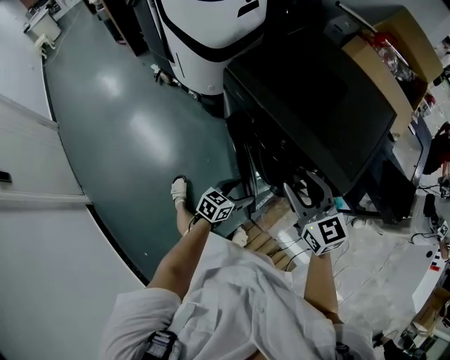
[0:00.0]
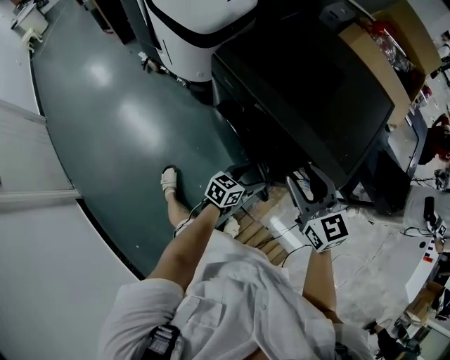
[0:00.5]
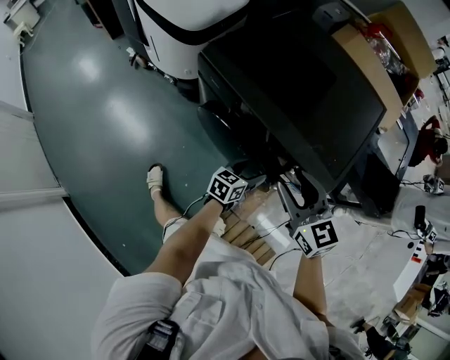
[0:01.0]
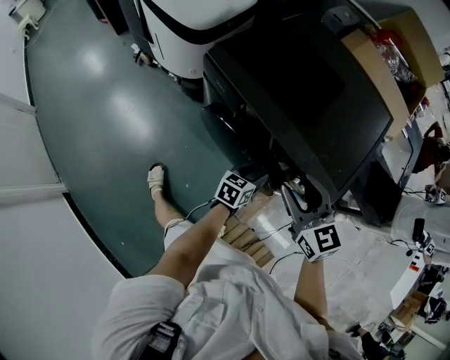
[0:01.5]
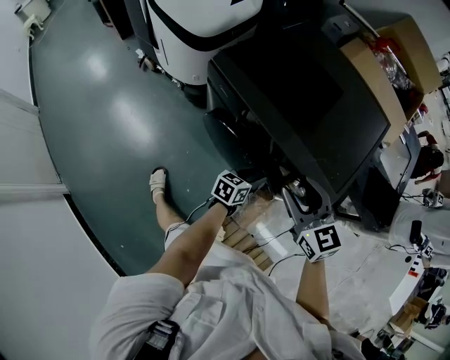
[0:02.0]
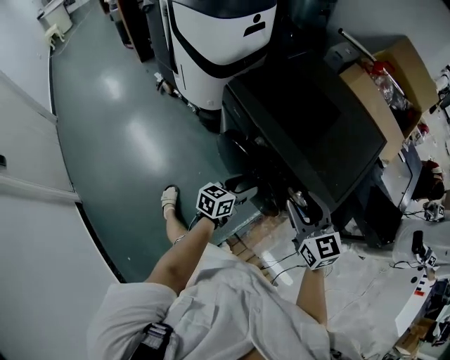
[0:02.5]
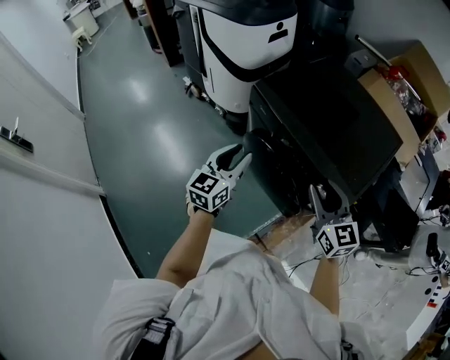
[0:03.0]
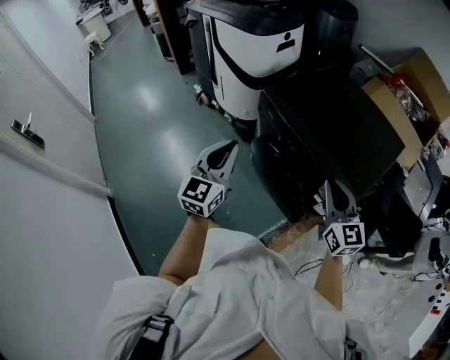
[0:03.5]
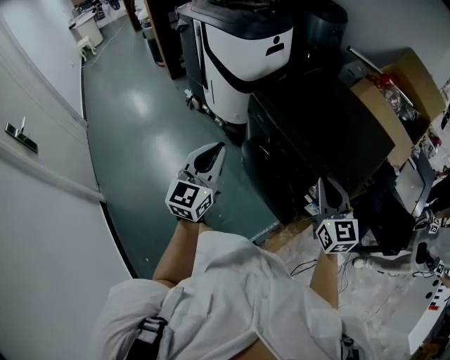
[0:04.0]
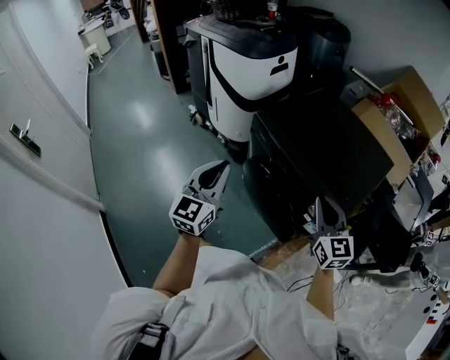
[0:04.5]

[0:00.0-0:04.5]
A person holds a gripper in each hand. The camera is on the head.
0:00.0 to 0:02.0: The right gripper moves roughly 5 cm. The left gripper heads forward and to the right, covering approximately 15 cm, and closes.
0:02.0 to 0:04.5: The right gripper shifts about 10 cm upward, and closes up. The left gripper is displaced upward and to the left by roughly 40 cm, turns by about 60 degrees, and closes its fingers.

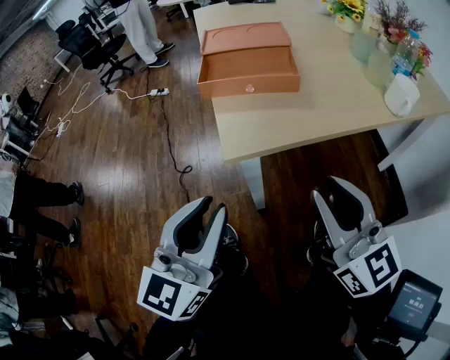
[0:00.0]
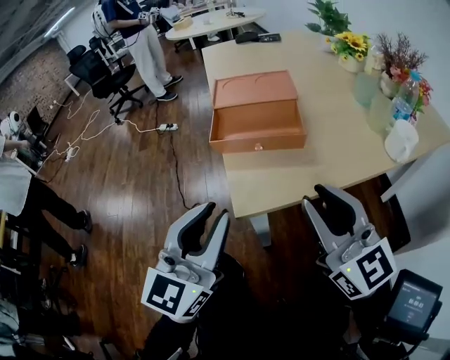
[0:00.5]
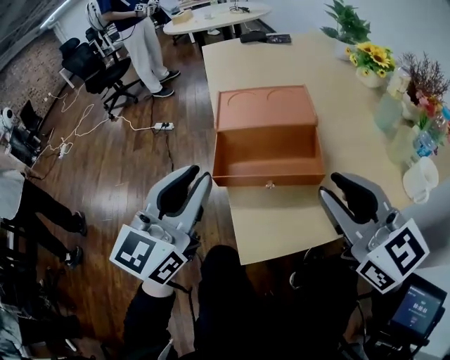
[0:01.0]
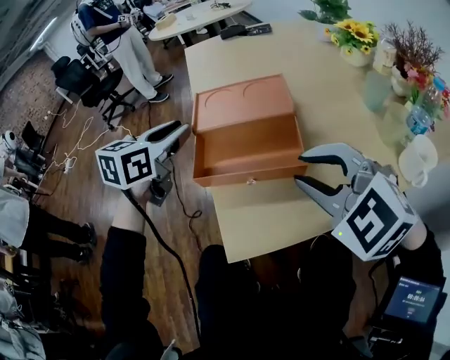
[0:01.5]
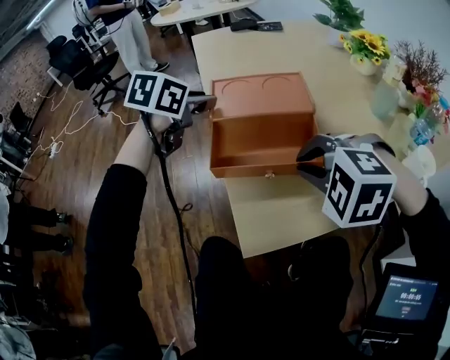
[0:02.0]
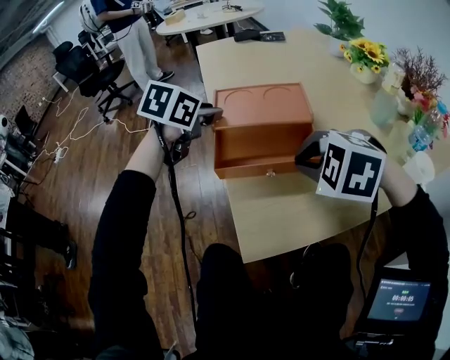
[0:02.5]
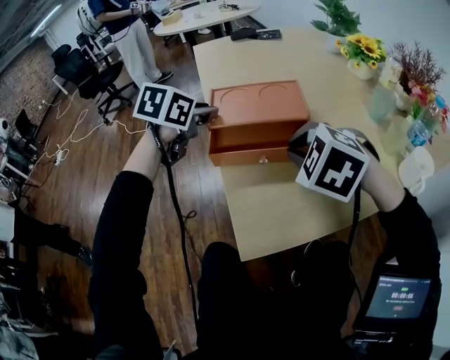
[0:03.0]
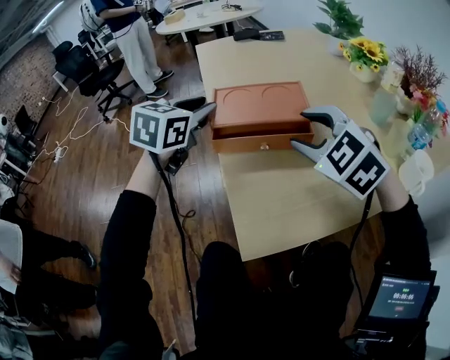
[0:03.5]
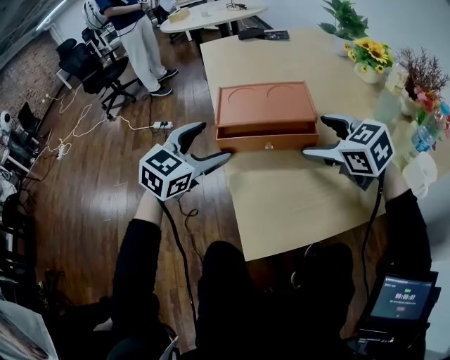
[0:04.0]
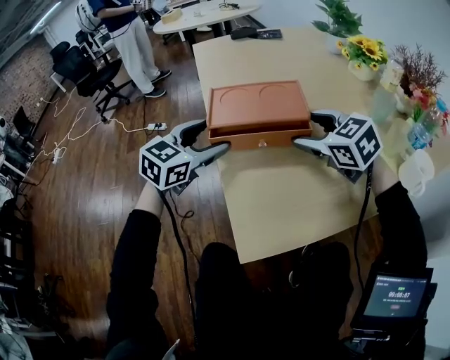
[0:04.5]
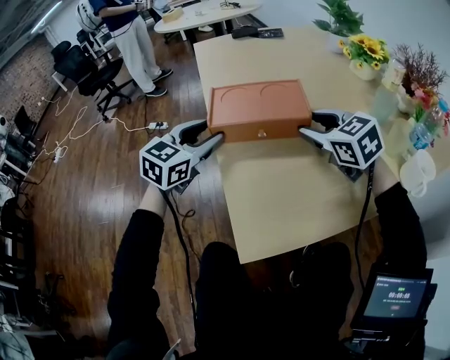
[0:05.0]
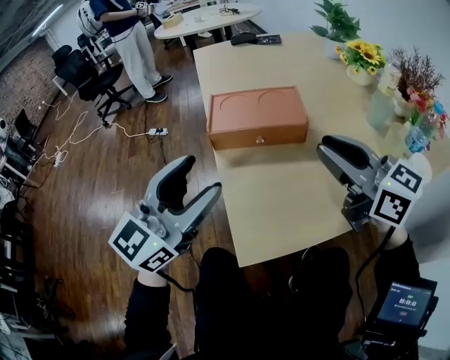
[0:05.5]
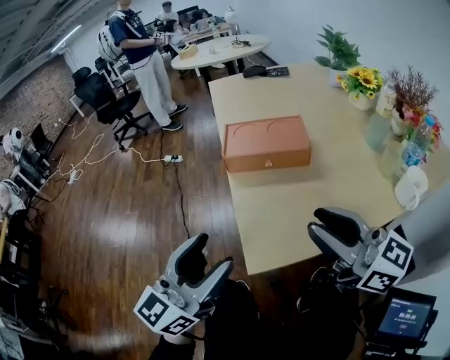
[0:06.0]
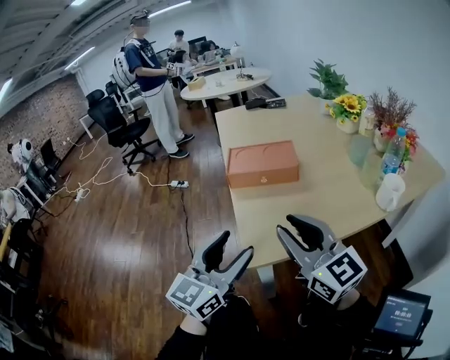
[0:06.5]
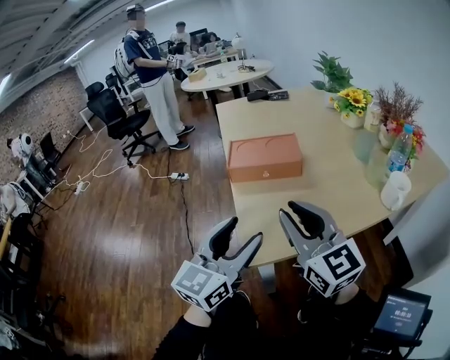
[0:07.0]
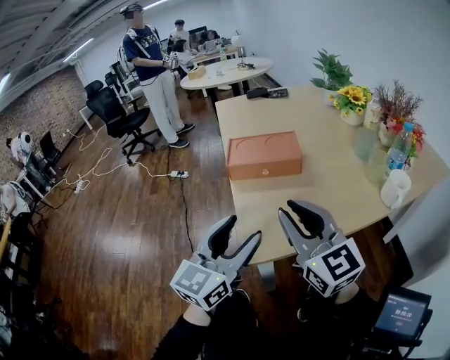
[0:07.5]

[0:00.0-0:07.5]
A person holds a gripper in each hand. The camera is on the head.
0:00.0 to 0:02.0: The left gripper heads forward, covering roughly 40 cm, and angles its fingers downward, by approximately 40 degrees; the right gripper is displaced forward by some 20 cm, and angles its fingers downward, by some 60 degrees.
0:02.0 to 0:04.0: The left gripper goes roughly 5 cm backward, turns by about 30 degrees, and opens up. The right gripper is displaced forward by approximately 10 cm, rotates around the line of its fingers by some 40 degrees, clockwise from behind, and opens.
0:04.0 to 0:05.5: The left gripper goes about 15 cm backward and upward, and changes its angle by roughly 30 degrees. The right gripper shifts about 15 cm upward and backward, tips its fingers upward by about 30 degrees, and closes its fingers.
0:05.5 to 0:07.5: The left gripper is displaced backward and to the right by roughly 10 cm, while the right gripper moves backward and to the left, approximately 15 cm, and swivels roughly 20 degrees.

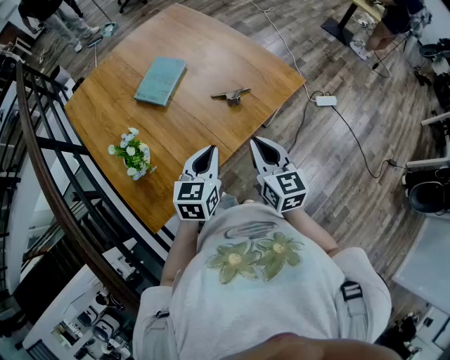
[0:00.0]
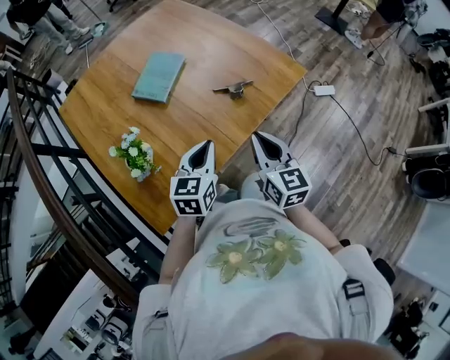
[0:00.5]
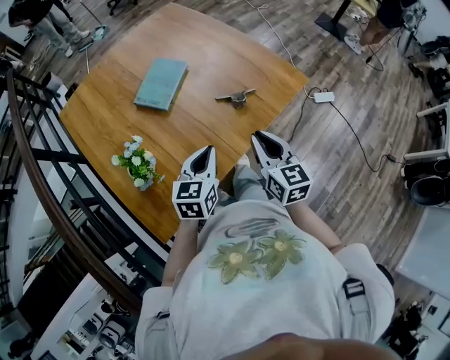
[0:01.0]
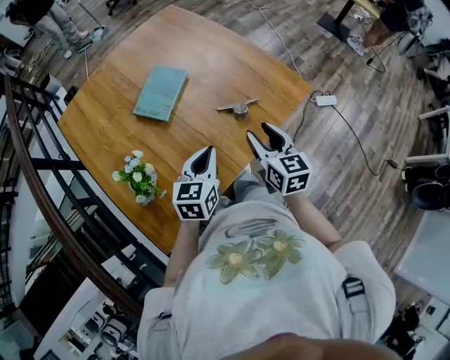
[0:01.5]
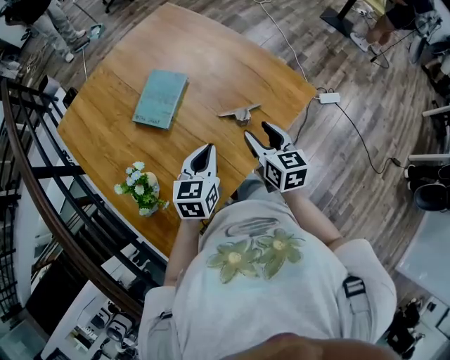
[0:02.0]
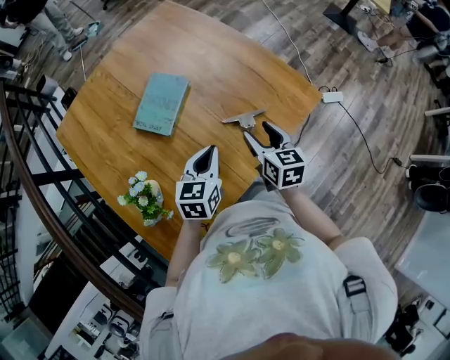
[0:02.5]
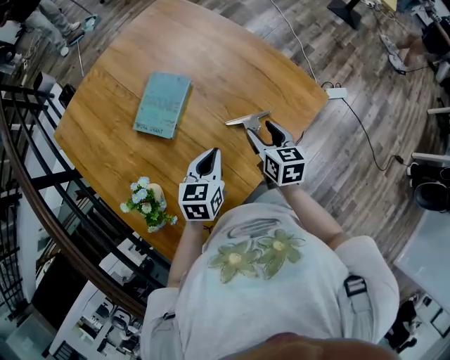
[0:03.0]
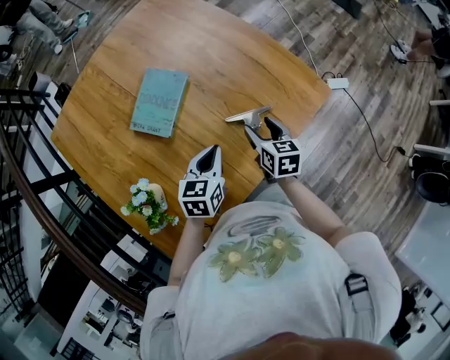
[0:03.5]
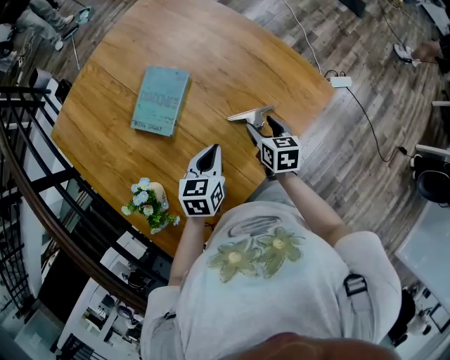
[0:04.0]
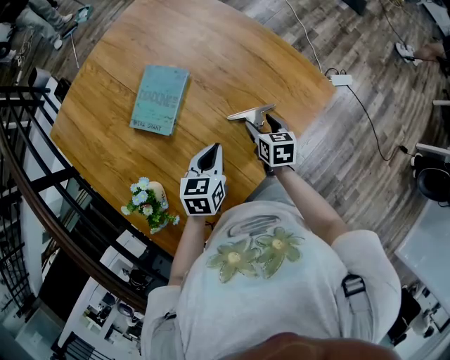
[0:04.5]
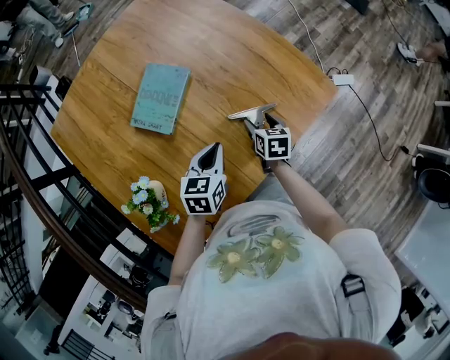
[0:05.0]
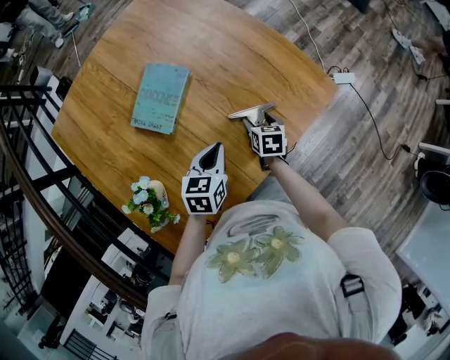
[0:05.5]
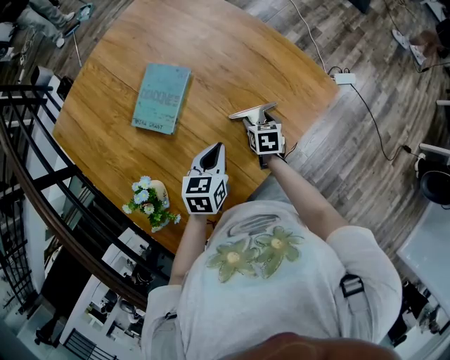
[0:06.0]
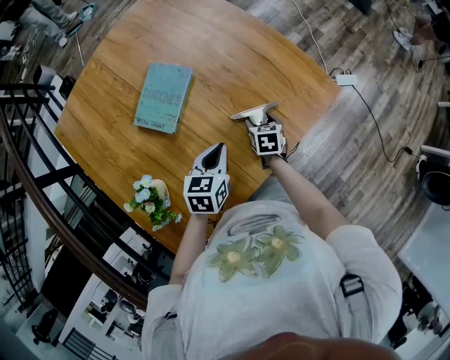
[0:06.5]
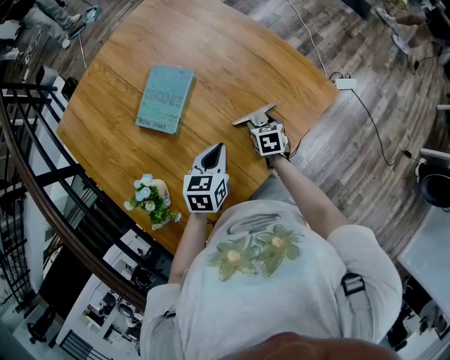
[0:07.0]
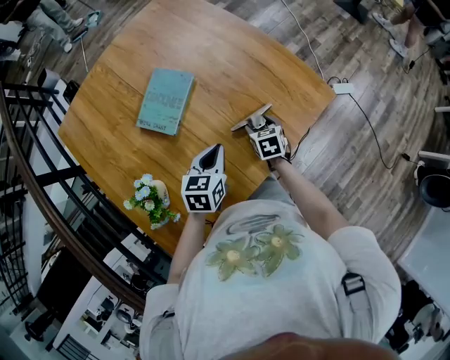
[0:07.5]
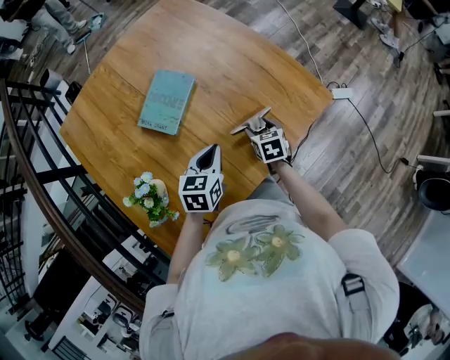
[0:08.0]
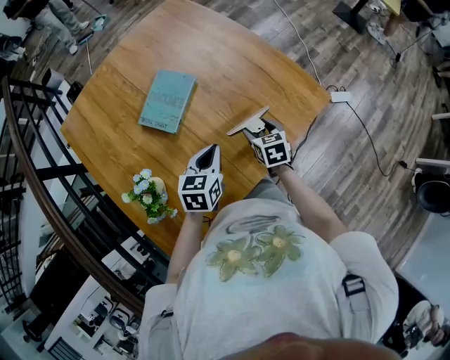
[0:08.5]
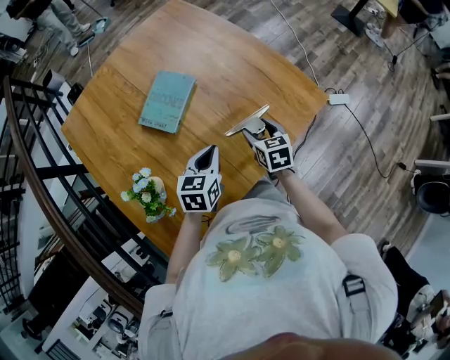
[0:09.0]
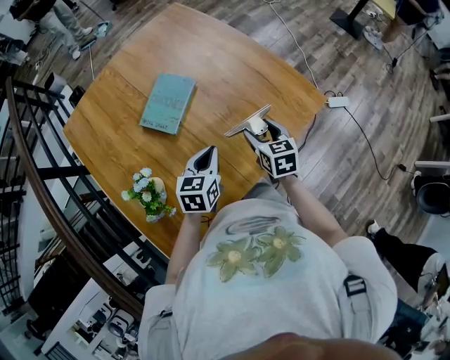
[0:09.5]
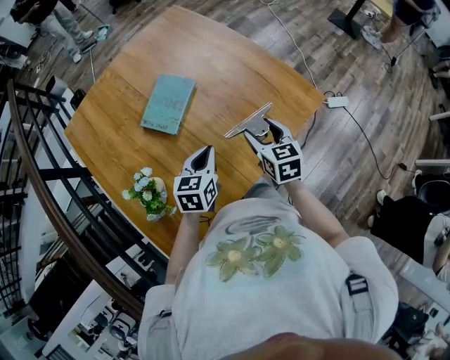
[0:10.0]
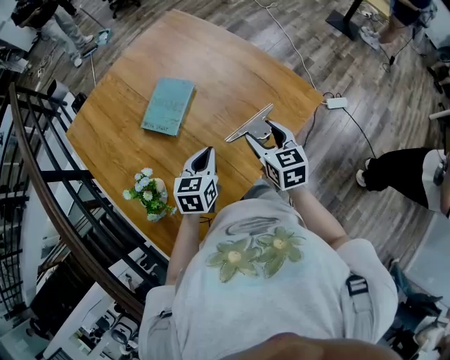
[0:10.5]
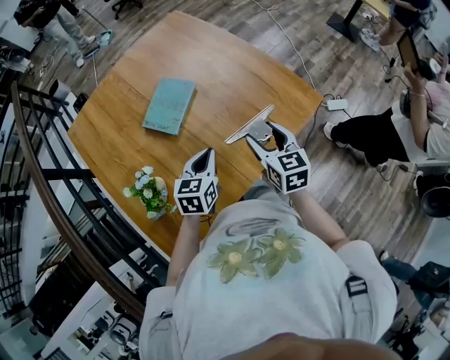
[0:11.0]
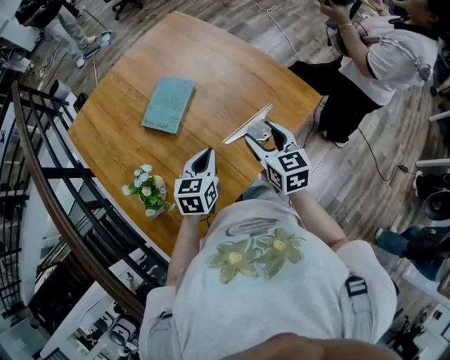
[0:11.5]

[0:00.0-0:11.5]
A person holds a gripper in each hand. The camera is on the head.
0:00.0 to 0:02.0: The right gripper shifts about 15 cm forward and downward, and opens. The left gripper moves forward, approximately 15 cm.
0:02.0 to 0:04.0: The right gripper heads downward and forward, covering approximately 15 cm. Meanwhile the left gripper travels downward and forward by roughly 10 cm.
0:04.0 to 0:06.0: The right gripper travels downward by about 10 cm.
0:06.0 to 0:07.5: There are only small adjustments of the grippers.
0:07.5 to 0:09.5: The right gripper shifts roughly 15 cm upward.
0:09.5 to 0:11.5: The right gripper is displaced upward by approximately 10 cm.

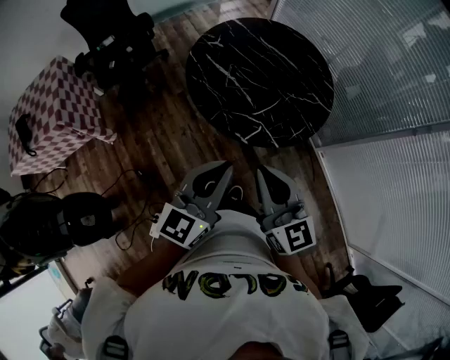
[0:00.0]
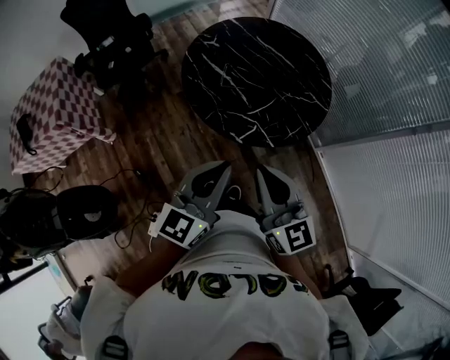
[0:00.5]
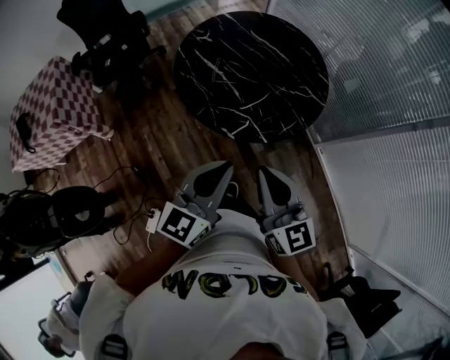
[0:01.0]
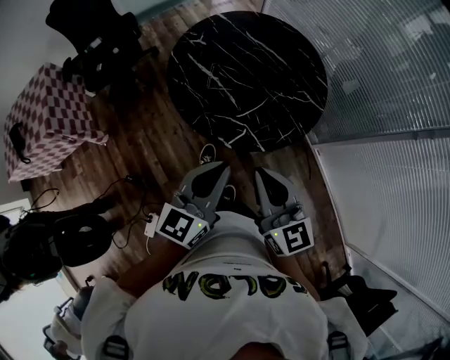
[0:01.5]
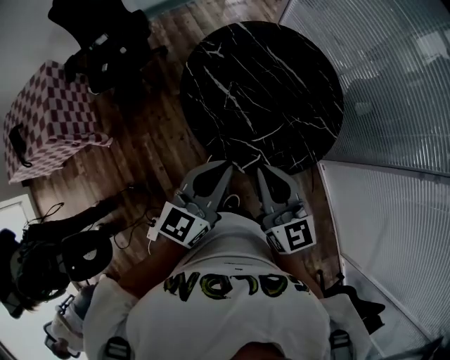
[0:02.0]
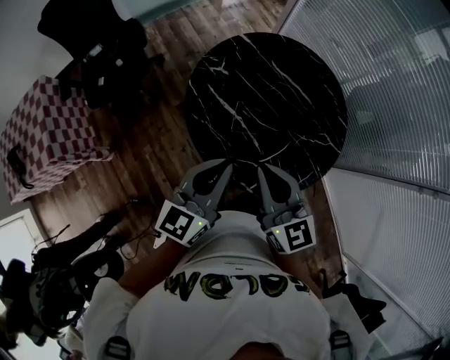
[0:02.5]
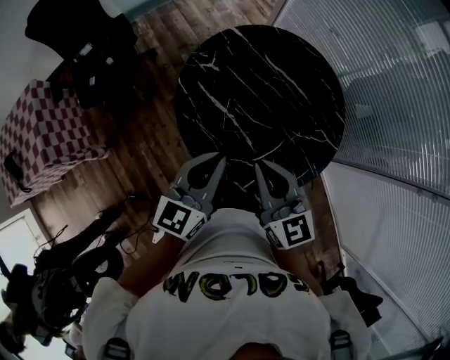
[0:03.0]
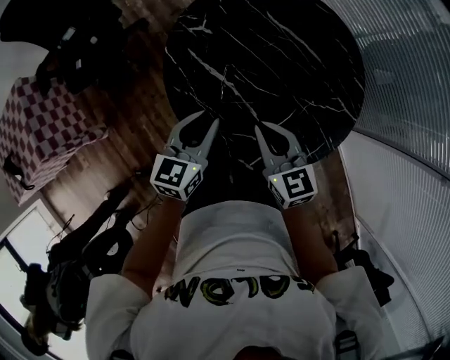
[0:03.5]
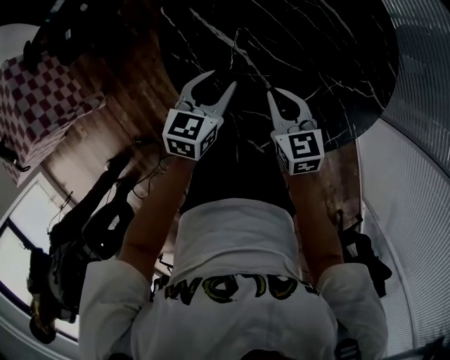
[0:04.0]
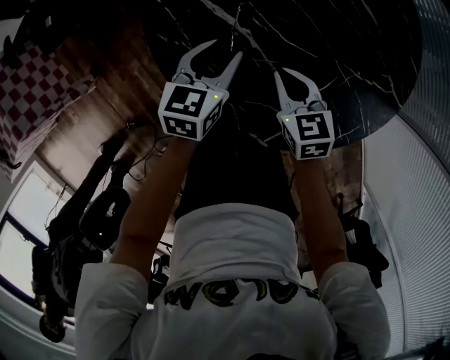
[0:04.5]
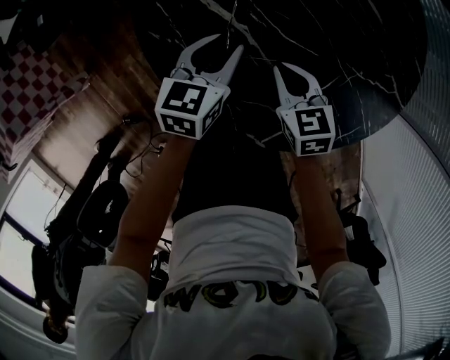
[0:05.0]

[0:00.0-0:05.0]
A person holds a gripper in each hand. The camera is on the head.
0:00.0 to 0:02.5: The grippers both shift forward by about 25 cm.
0:02.5 to 0:05.0: The left gripper is displaced downward and forward by about 40 cm, tips its fingers downward by about 30 degrees, and opens up. Meanwhile the right gripper heads downward, covering about 40 cm, and points its fingers approximately 40 degrees further downward.
